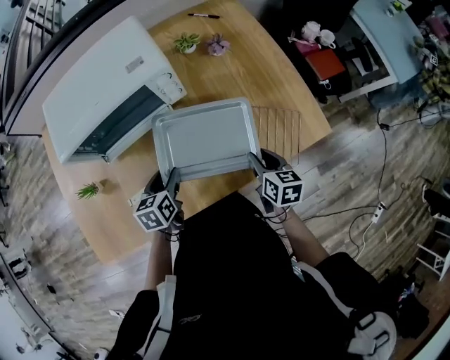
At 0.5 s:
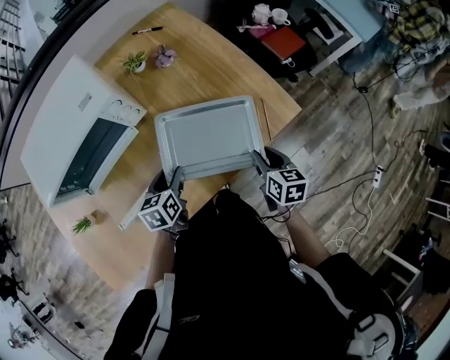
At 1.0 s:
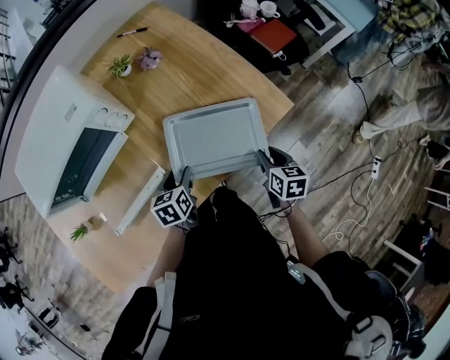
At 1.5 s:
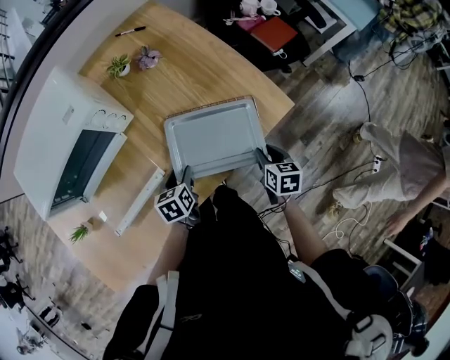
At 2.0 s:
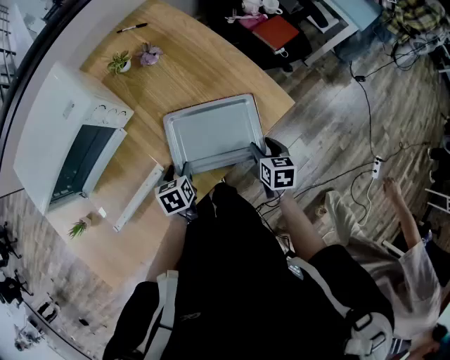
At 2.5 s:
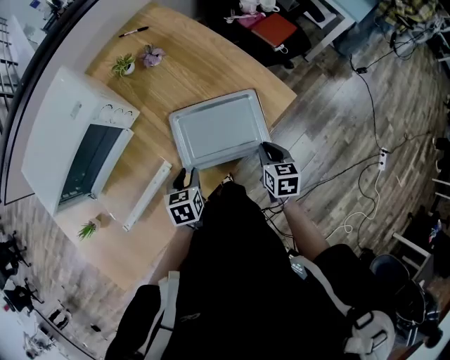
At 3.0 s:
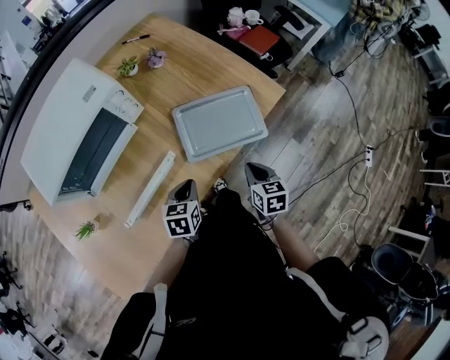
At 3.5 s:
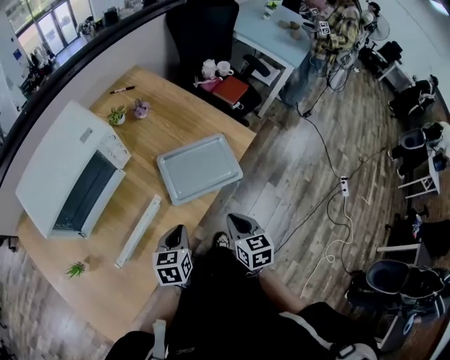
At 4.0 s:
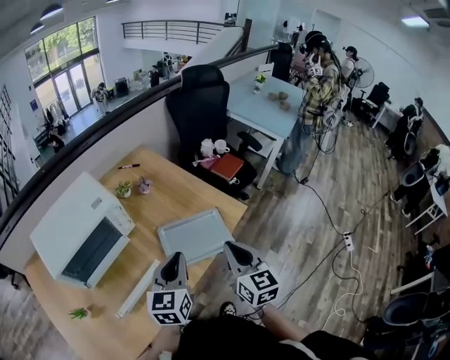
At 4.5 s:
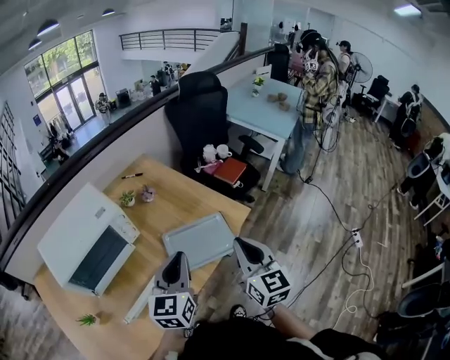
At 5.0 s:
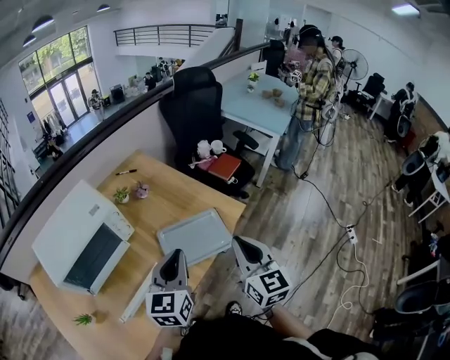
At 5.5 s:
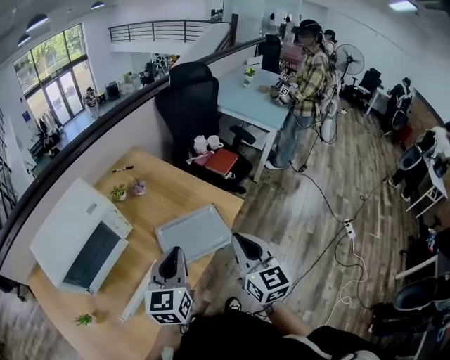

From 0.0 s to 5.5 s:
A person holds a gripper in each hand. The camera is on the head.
From 0.0 s to 2.0 s: The right gripper moves to the right, about 15 cm, while the left gripper shifts some 20 cm to the right and downward.
From 2.0 s to 3.5 s: The left gripper moves backward and upward, roughly 20 cm, rotates roughly 30 degrees, and closes its fingers. The right gripper is displaced backward, upward and to the left by approximately 25 cm, and closes up.
From 3.5 s to 5.5 s: Both grippers travel together upward, some 20 cm. The left gripper angles its fingers upward, by about 30 degrees, while the right gripper tips its fingers upward by some 30 degrees.

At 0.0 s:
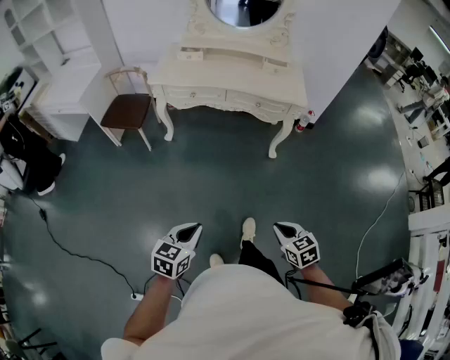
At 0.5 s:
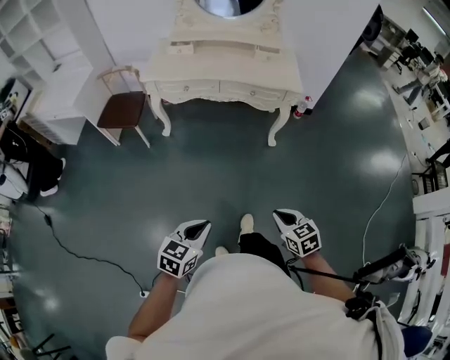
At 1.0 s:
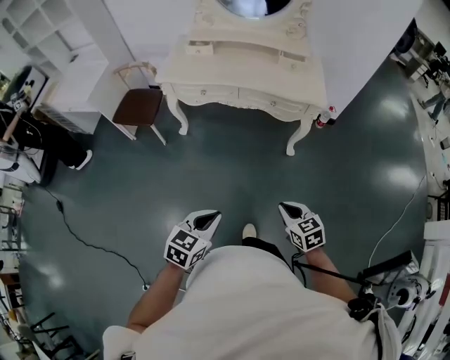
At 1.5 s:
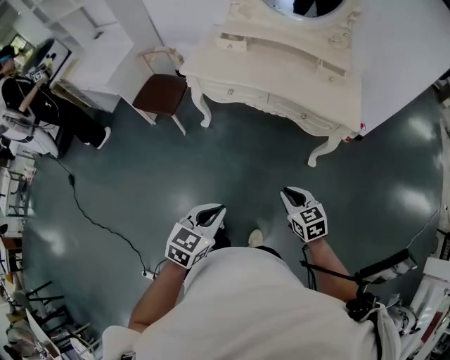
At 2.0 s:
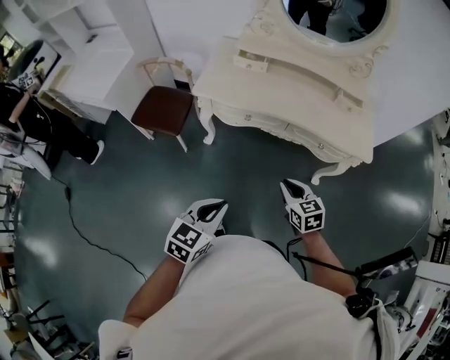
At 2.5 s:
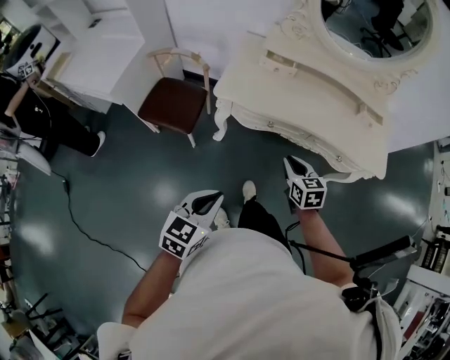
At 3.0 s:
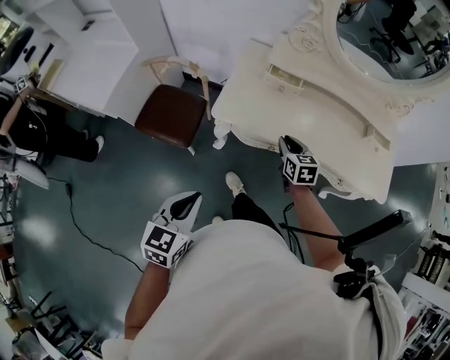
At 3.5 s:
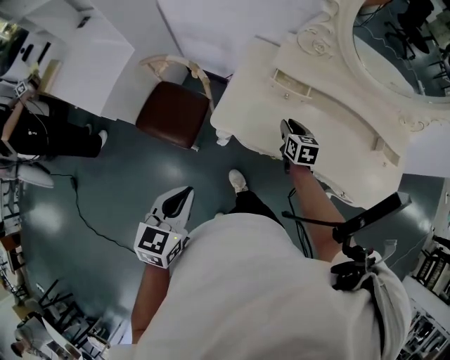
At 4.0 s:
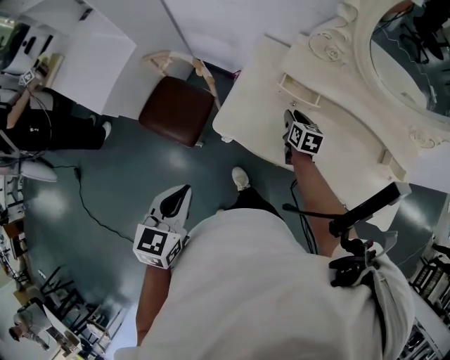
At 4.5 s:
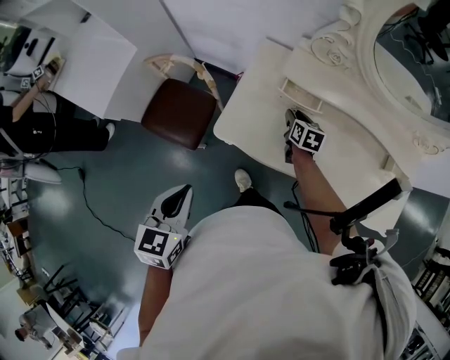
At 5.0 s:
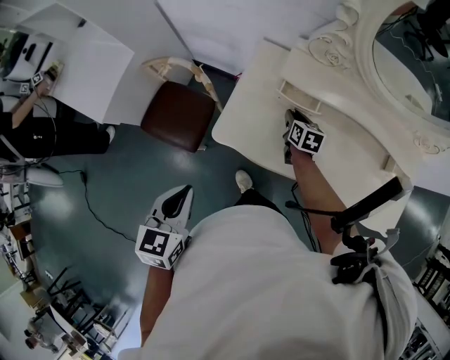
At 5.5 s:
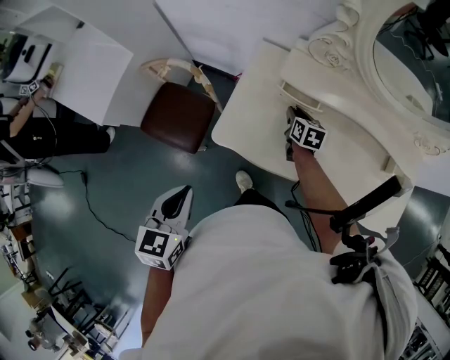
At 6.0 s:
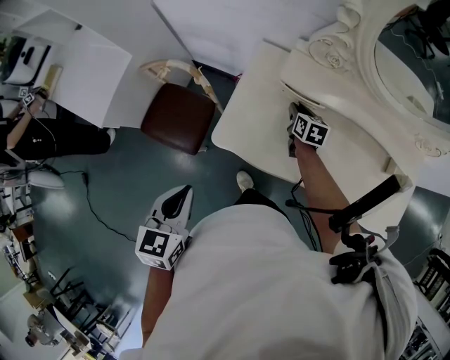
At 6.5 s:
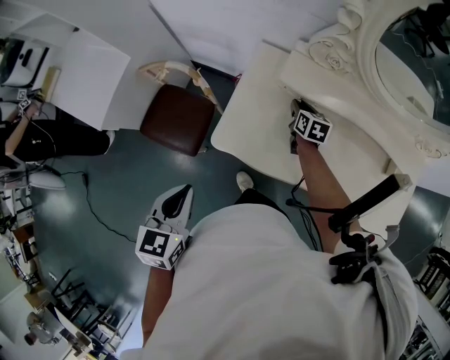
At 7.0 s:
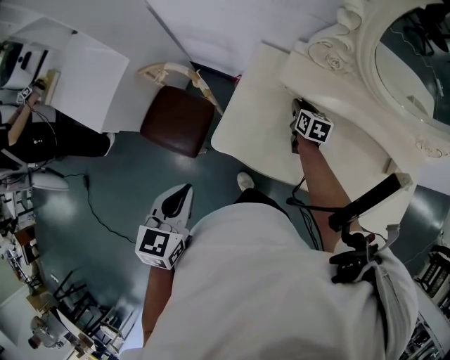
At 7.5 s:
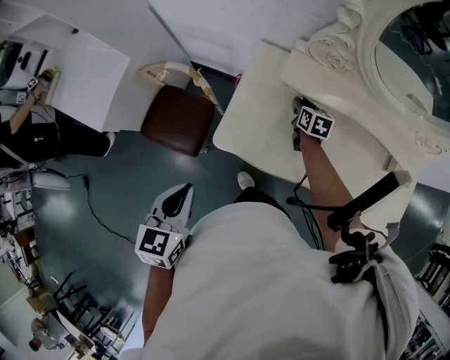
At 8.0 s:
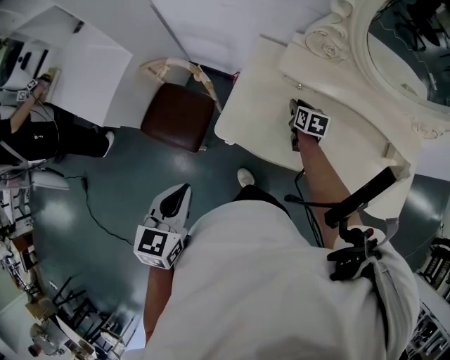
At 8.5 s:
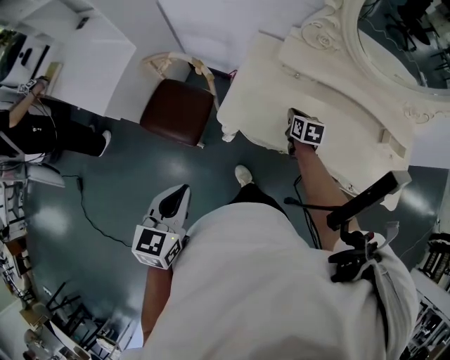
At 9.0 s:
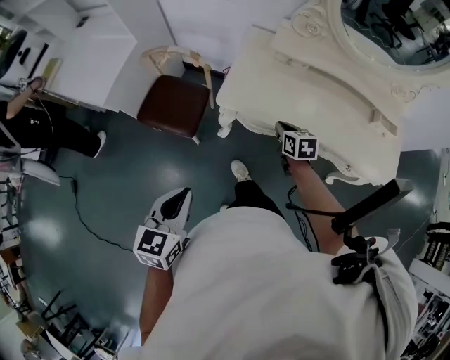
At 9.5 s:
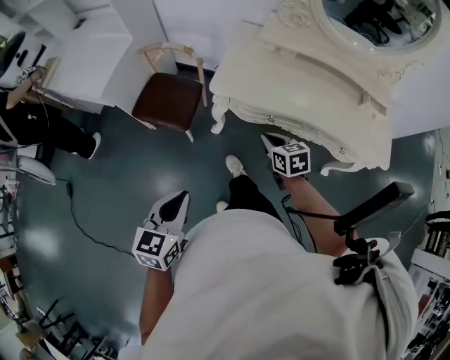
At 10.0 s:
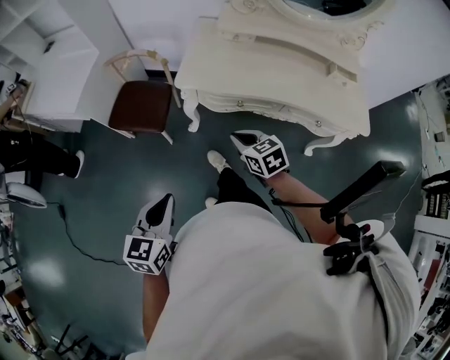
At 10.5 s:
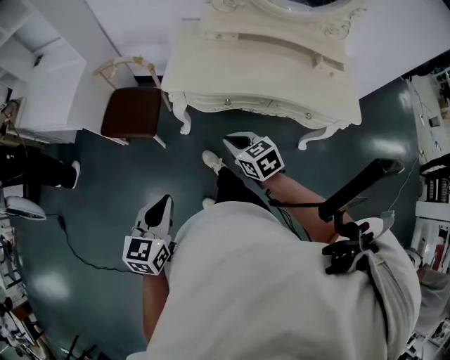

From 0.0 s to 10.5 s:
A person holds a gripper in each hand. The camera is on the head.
From 0.0 s to 2.0 s: The right gripper moves forward and to the left, approximately 50 cm, while the left gripper moves forward, approximately 40 cm.
From 2.0 s to 4.0 s: The two grippers travel together, forward and to the left, some 50 cm. The left gripper turns by roughly 30 degrees.
From 4.0 s to 6.5 s: Both grippers move forward, about 10 cm.
From 6.5 s to 8.5 s: The grippers both shift backward by roughly 15 cm. The right gripper closes up.
From 8.5 s to 10.5 s: The right gripper shifts about 40 cm backward, and swivels about 30 degrees; the left gripper is displaced backward by approximately 25 cm.

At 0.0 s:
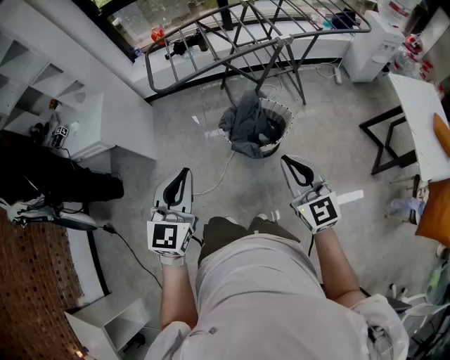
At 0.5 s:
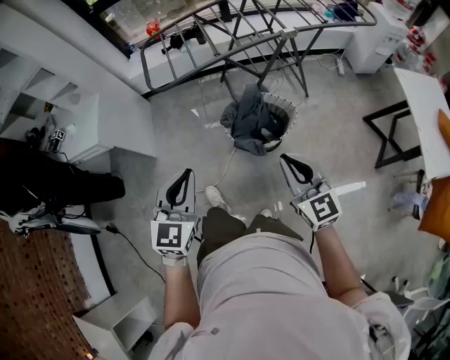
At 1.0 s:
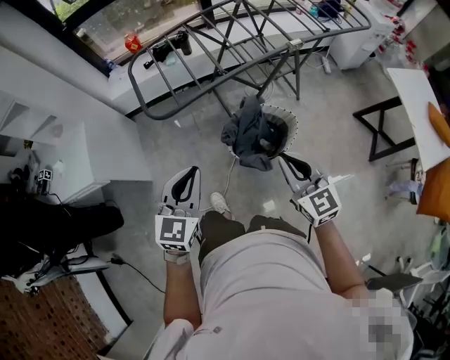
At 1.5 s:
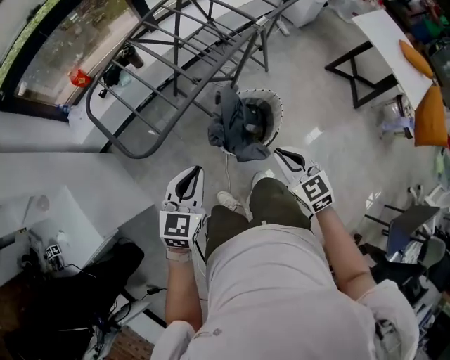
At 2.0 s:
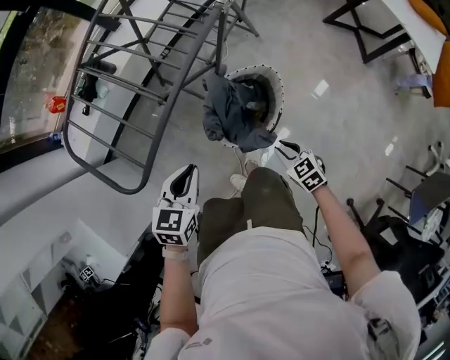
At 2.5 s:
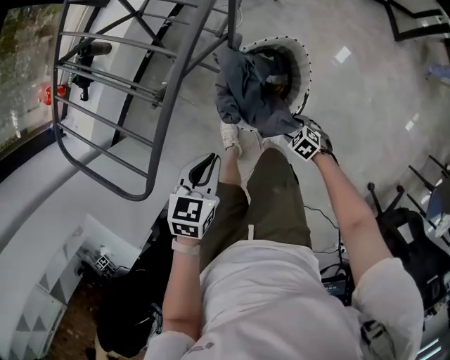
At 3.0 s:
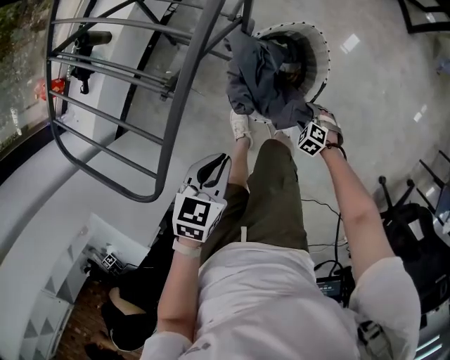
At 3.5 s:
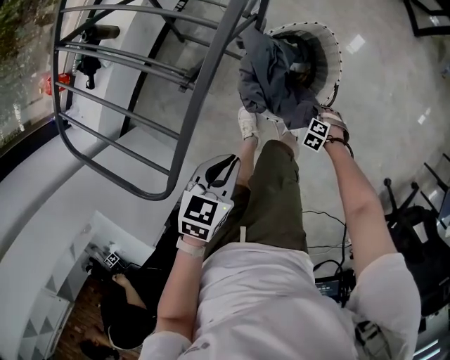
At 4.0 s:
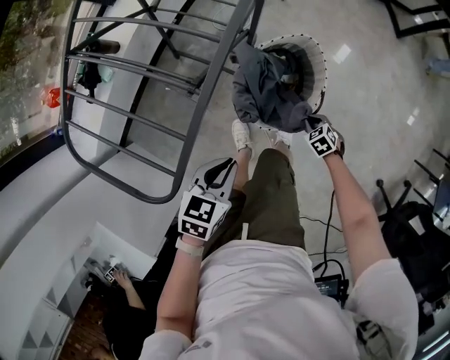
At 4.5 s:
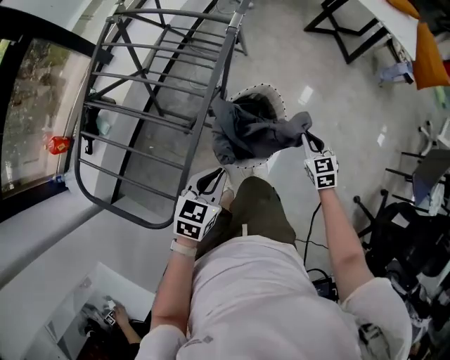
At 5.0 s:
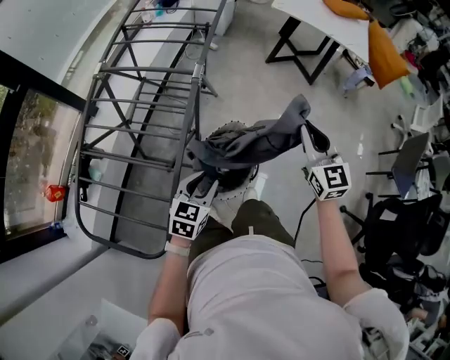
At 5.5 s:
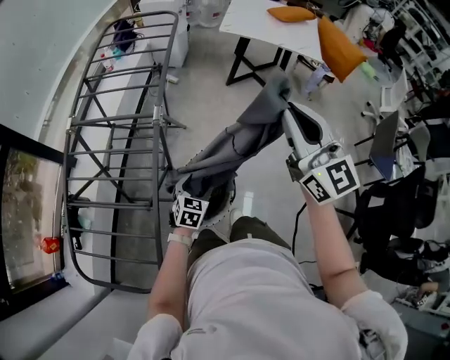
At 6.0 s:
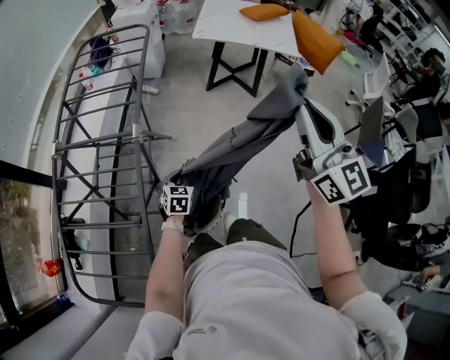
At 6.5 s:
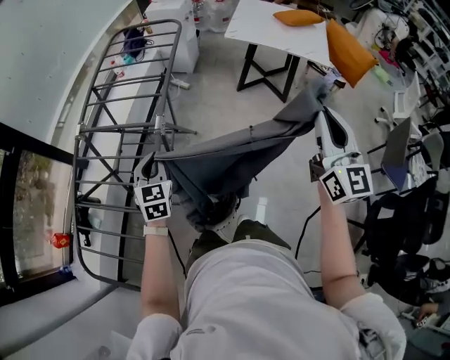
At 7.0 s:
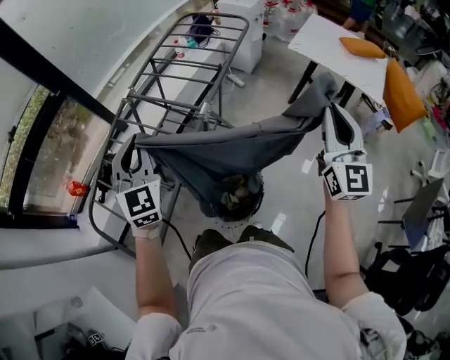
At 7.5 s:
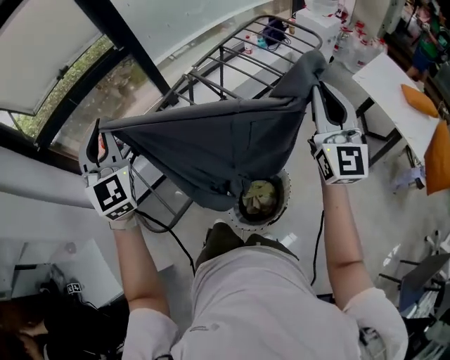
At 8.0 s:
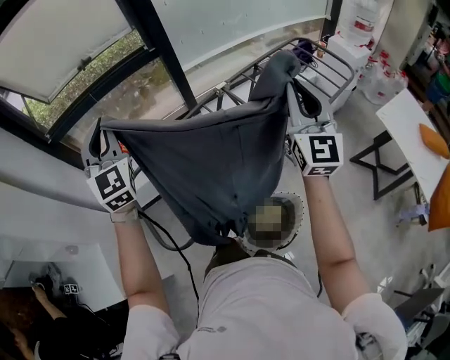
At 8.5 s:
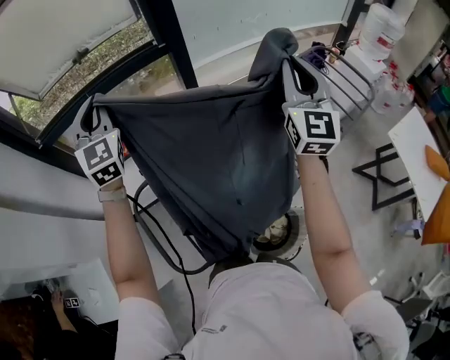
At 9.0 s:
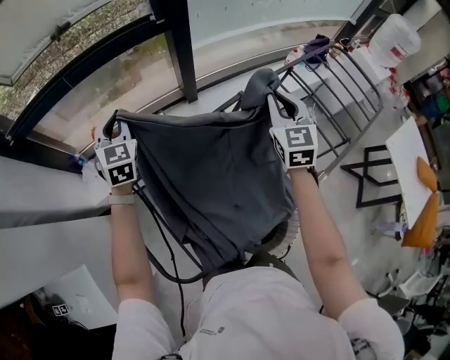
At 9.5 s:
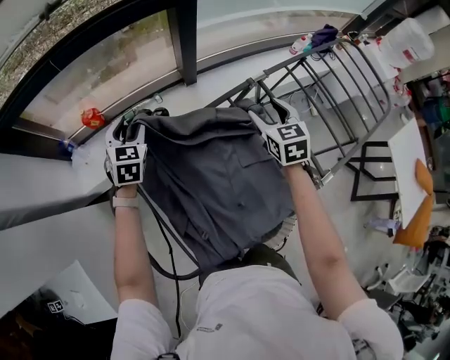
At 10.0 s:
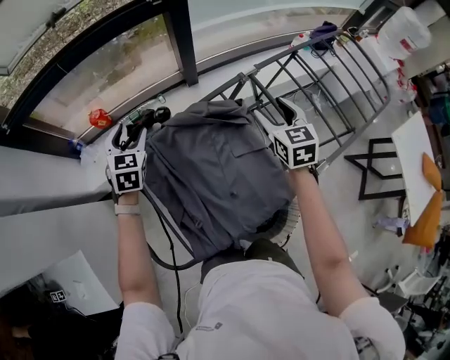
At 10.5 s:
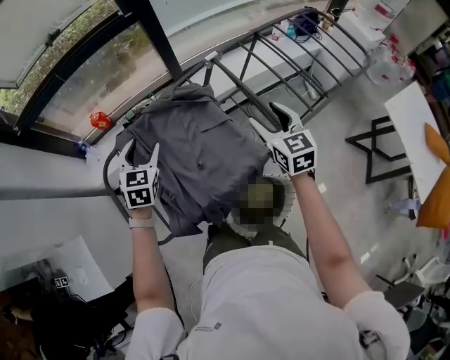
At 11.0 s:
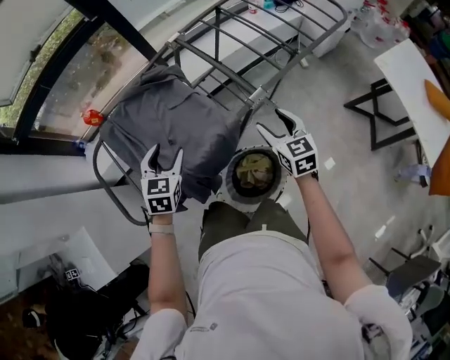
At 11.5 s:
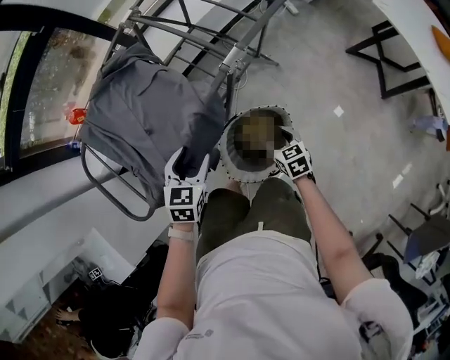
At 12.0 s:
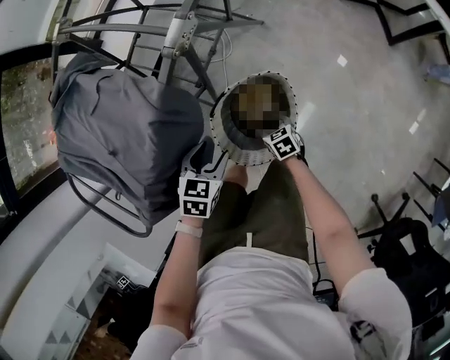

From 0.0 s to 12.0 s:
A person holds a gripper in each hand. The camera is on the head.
From 0.0 s to 2.0 s: The left gripper changes place by some 50 cm, and points its fingers about 30 degrees further downward. Meanwhile the right gripper heads downward, covering approximately 35 cm, and points its fingers some 40 degrees further downward.
From 2.0 s to 4.0 s: The left gripper moves downward, approximately 10 cm, and swivels approximately 20 degrees. The right gripper goes about 25 cm downward, rotates roughly 20 degrees, and opens and closes again.
From 4.0 s to 6.0 s: The right gripper is displaced upward by some 80 cm, and angles its fingers upward, by some 80 degrees. Meanwhile the left gripper shifts by some 35 cm, rotates about 30 degrees, and opens, then closes again.
From 6.0 s to 8.0 s: The right gripper changes place by about 40 cm, and swivels roughly 40 degrees, while the left gripper heads upward, covering approximately 50 cm, and tips its fingers upward by some 60 degrees.
From 8.0 s to 10.0 s: The left gripper goes about 40 cm downward and forward, tips its fingers downward by about 40 degrees, and opens; the right gripper is displaced downward, forward and to the left by roughly 40 cm, points its fingers about 40 degrees further downward, and opens its fingers.
From 10.0 s to 12.0 s: The two grippers travel together, backward and to the right, approximately 50 cm. The right gripper goes some 50 cm downward, and turns by roughly 40 degrees. The left gripper heads downward, covering roughly 30 cm, and points its fingers roughly 30 degrees further downward.
